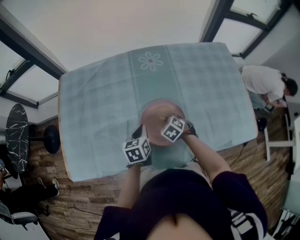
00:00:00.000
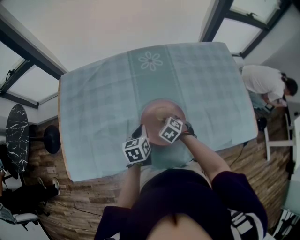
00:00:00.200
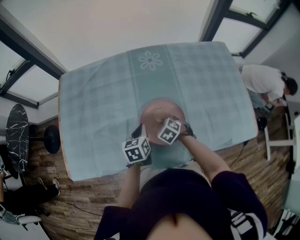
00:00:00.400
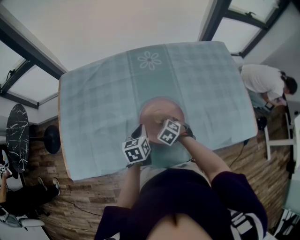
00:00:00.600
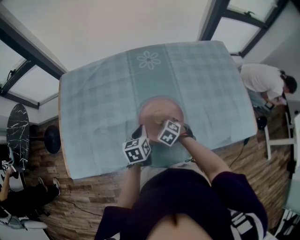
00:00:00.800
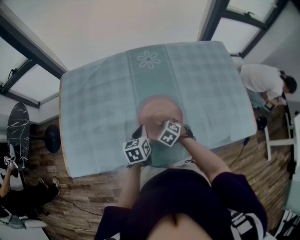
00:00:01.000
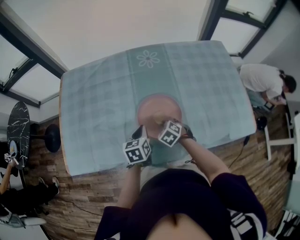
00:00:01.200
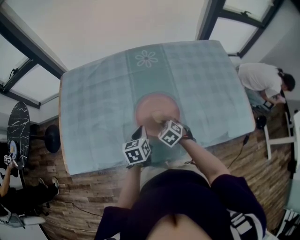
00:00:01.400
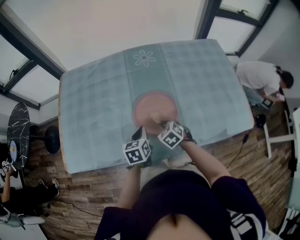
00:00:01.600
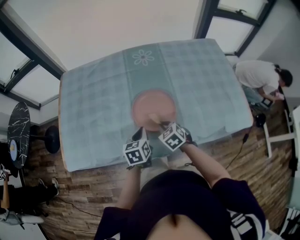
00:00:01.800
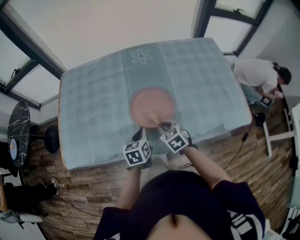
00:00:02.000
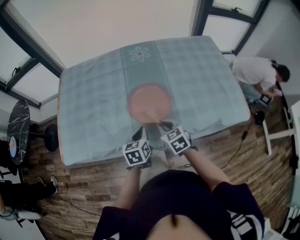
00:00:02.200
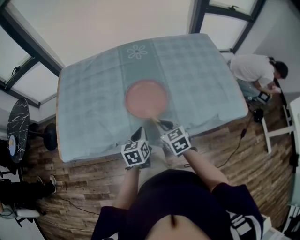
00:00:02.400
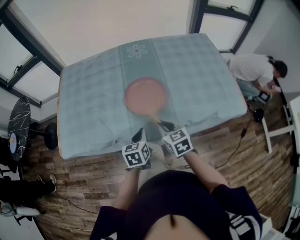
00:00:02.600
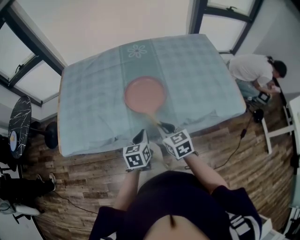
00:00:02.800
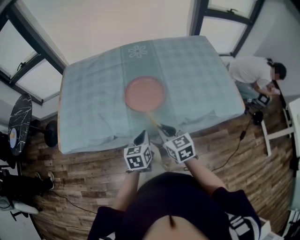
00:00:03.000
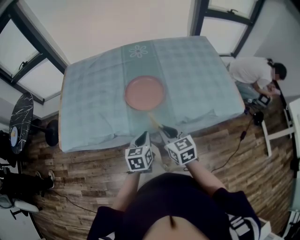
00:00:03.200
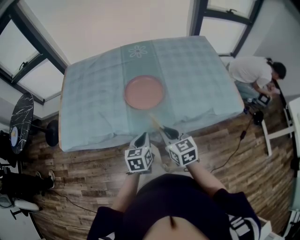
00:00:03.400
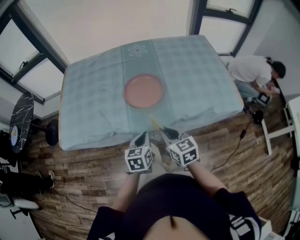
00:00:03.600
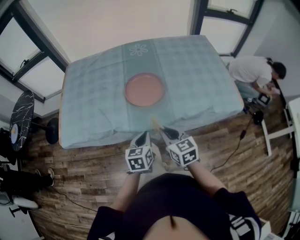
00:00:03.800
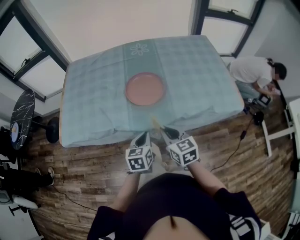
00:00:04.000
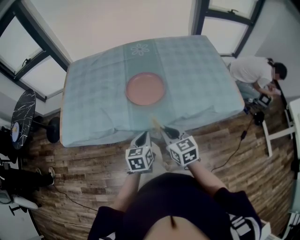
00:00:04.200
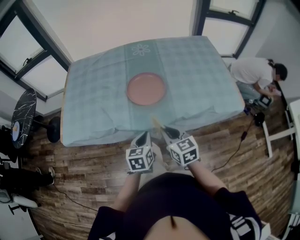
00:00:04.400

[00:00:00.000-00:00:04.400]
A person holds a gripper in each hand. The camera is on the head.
00:00:00.000 to 00:00:01.400: The grippers both shift backward by about 5 cm.
00:00:01.400 to 00:00:03.000: The right gripper is displaced backward and upward by roughly 25 cm, and tips its fingers upward by approximately 30 degrees. The left gripper travels backward by about 20 cm.
00:00:03.000 to 00:00:04.400: Both grippers travel together backward, some 5 cm.

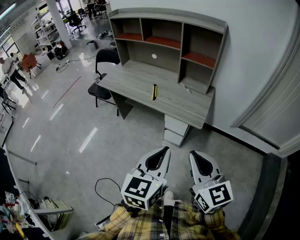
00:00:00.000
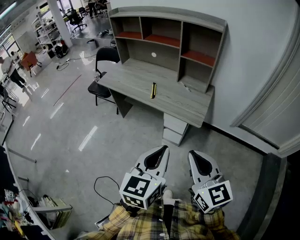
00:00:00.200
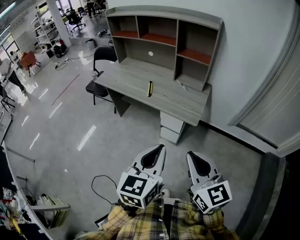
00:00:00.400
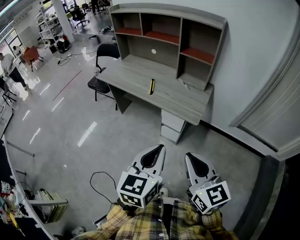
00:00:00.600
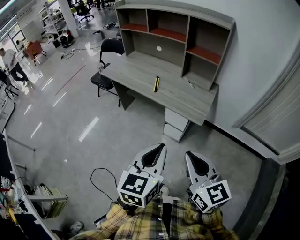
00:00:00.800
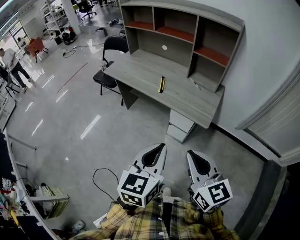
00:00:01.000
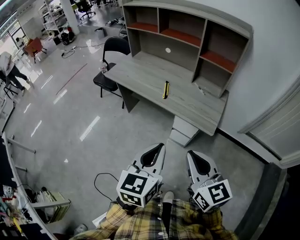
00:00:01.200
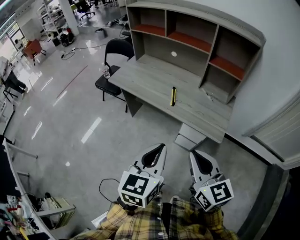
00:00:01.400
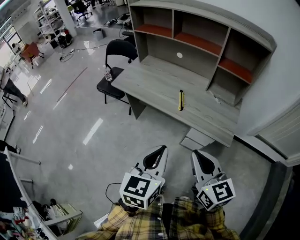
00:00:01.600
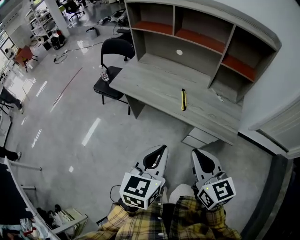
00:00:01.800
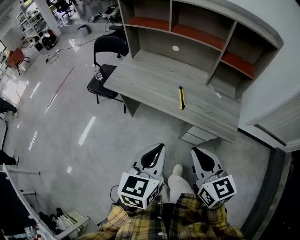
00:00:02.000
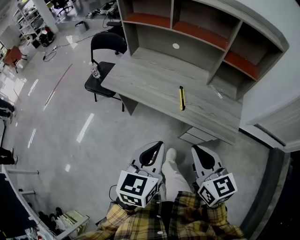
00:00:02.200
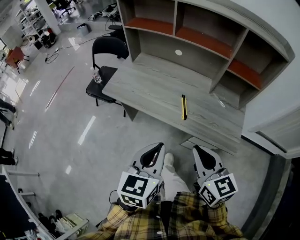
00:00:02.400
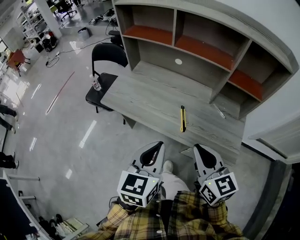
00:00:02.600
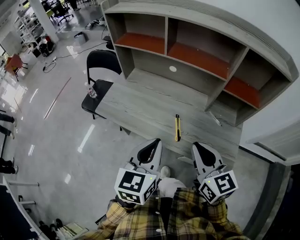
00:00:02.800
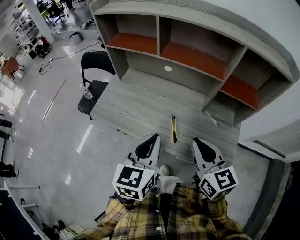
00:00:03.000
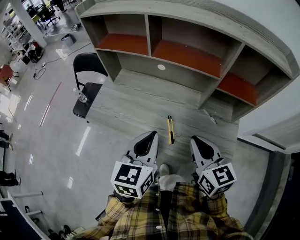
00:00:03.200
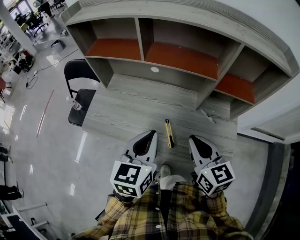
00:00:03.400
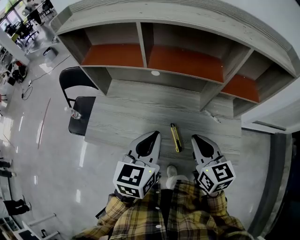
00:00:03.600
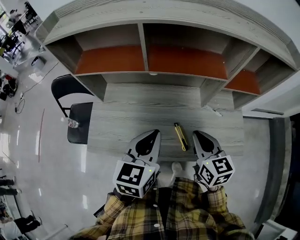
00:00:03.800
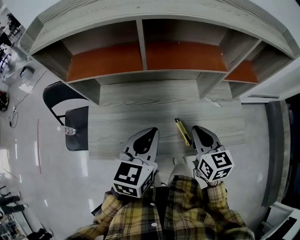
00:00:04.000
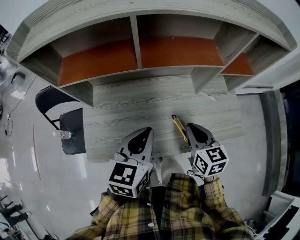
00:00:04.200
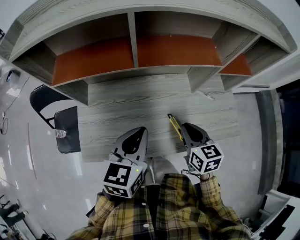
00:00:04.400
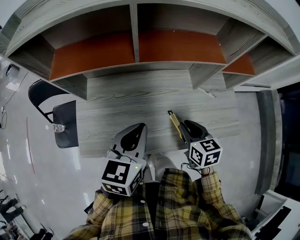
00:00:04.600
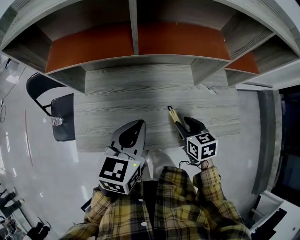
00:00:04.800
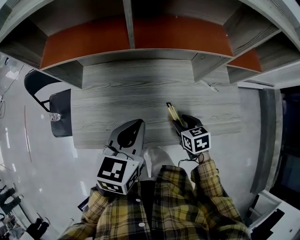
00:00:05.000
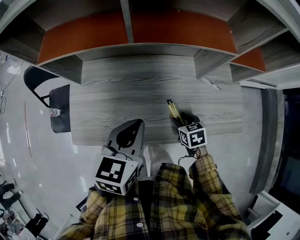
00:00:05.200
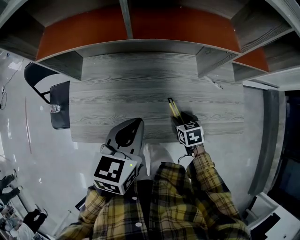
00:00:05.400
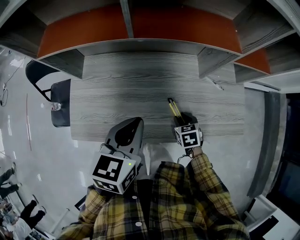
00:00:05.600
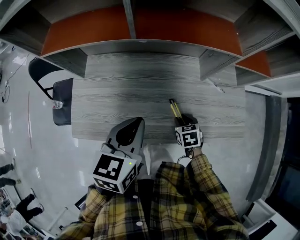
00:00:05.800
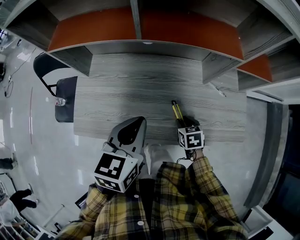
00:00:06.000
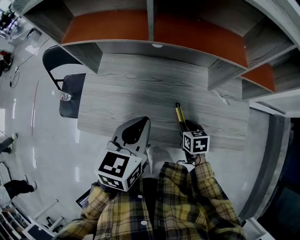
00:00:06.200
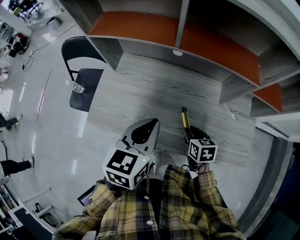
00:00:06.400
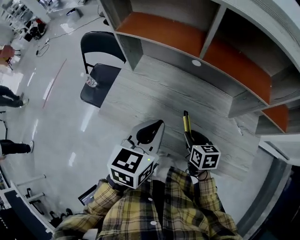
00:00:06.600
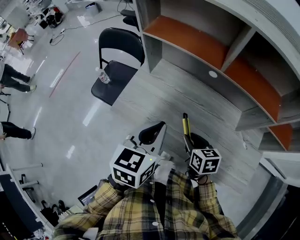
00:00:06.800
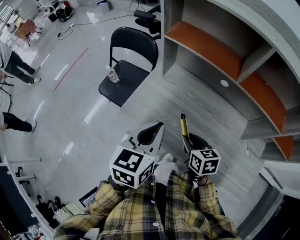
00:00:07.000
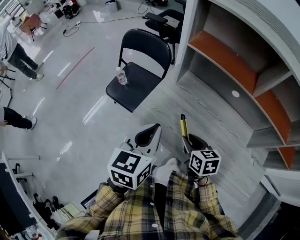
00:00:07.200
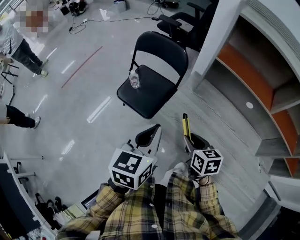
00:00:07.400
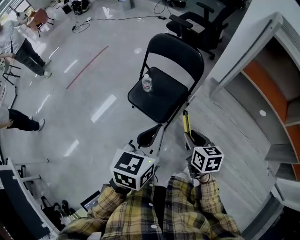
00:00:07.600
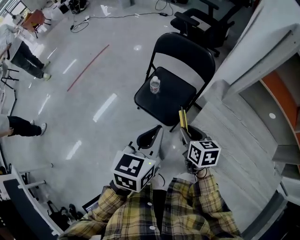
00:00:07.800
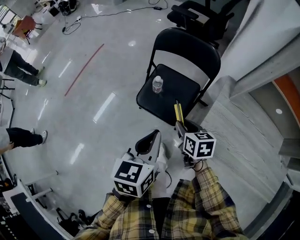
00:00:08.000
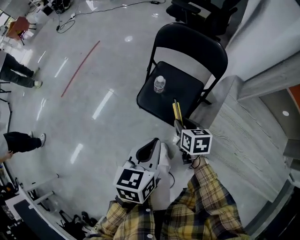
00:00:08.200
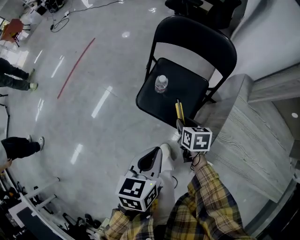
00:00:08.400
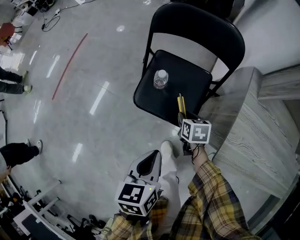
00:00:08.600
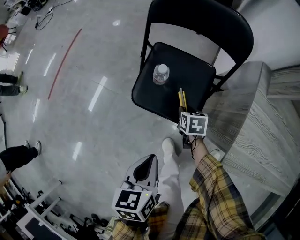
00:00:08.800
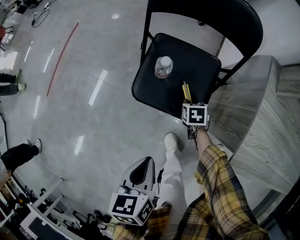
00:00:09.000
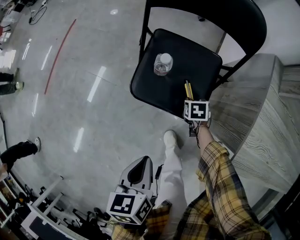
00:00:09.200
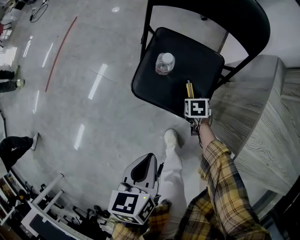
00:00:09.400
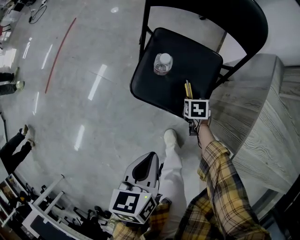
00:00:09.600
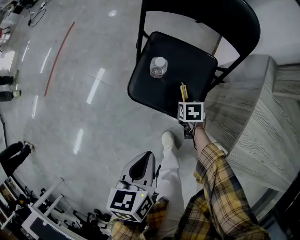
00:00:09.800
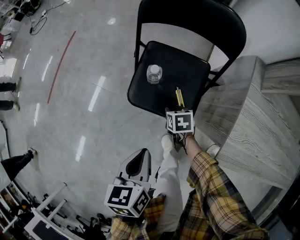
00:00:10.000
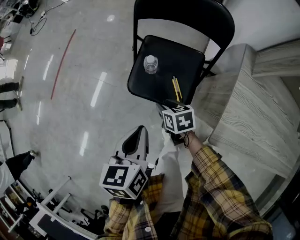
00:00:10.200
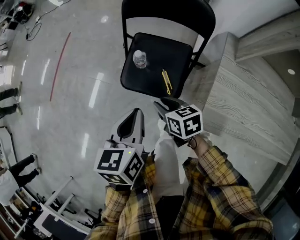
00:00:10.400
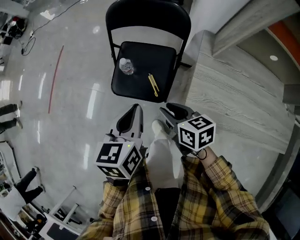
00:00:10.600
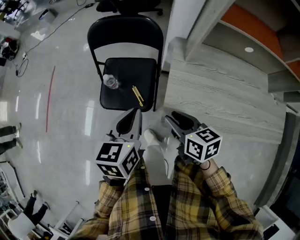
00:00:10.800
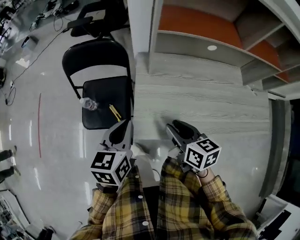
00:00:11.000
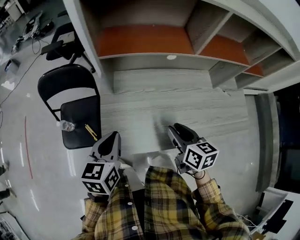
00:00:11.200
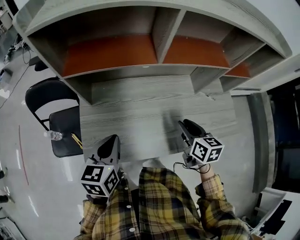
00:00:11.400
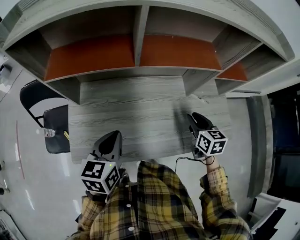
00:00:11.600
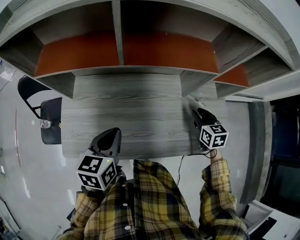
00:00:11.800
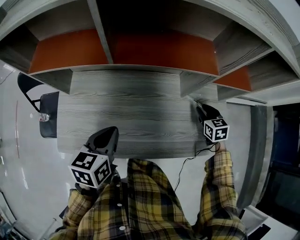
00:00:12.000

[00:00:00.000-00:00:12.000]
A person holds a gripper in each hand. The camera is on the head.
00:00:00.000 to 00:00:01.600: The right gripper heads forward and to the left, covering roughly 25 cm. Meanwhile the left gripper heads to the left and forward, covering roughly 25 cm.
00:00:01.600 to 00:00:03.000: The two grippers go roughly 30 cm forward.
00:00:03.000 to 00:00:04.400: The right gripper is displaced downward by some 15 cm, and rotates about 40 degrees; the left gripper moves roughly 20 cm, and rotates about 30 degrees.
00:00:04.400 to 00:00:06.000: The right gripper goes roughly 20 cm downward, turns by some 30 degrees, and opens its fingers.
00:00:06.000 to 00:00:07.600: The two grippers travel together, about 50 cm. The left gripper rotates roughly 30 degrees. The right gripper swivels some 40 degrees.
00:00:07.600 to 00:00:09.000: The right gripper moves downward, forward and to the left, some 50 cm, and turns by some 30 degrees. The left gripper heads downward and to the left, covering roughly 35 cm, and swivels some 30 degrees.
00:00:09.000 to 00:00:10.400: The left gripper travels upward by approximately 15 cm. Meanwhile the right gripper shifts about 25 cm upward, and turns by roughly 30 degrees.
00:00:10.400 to 00:00:12.000: The two grippers travel together, approximately 80 cm. The right gripper rotates some 40 degrees. Meanwhile the left gripper turns by roughly 30 degrees.

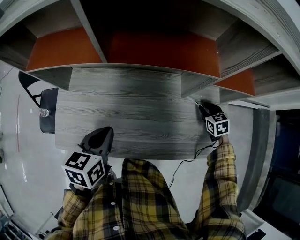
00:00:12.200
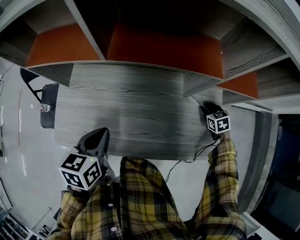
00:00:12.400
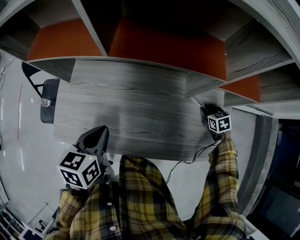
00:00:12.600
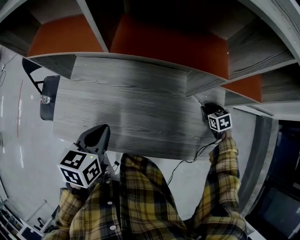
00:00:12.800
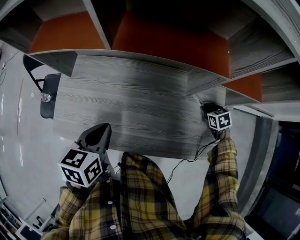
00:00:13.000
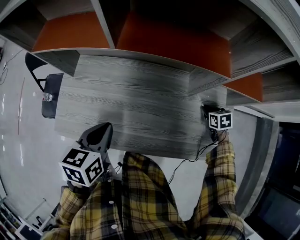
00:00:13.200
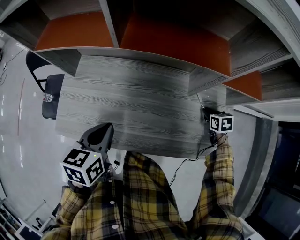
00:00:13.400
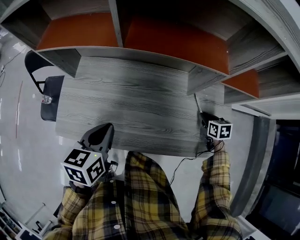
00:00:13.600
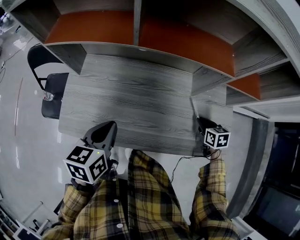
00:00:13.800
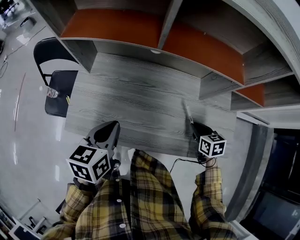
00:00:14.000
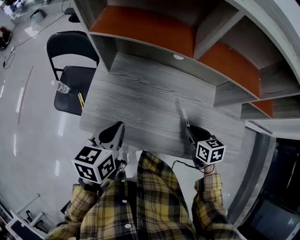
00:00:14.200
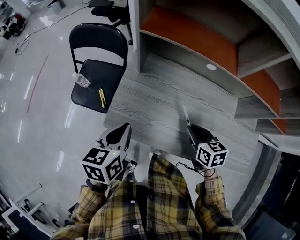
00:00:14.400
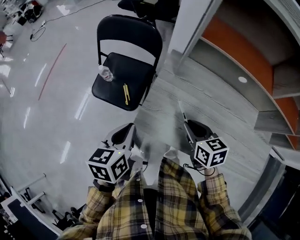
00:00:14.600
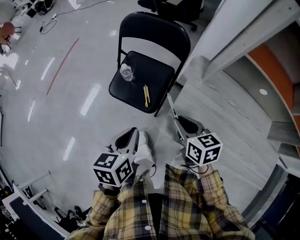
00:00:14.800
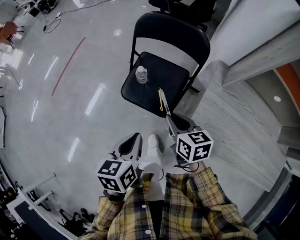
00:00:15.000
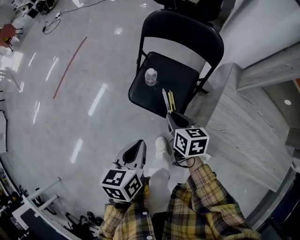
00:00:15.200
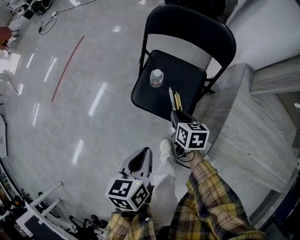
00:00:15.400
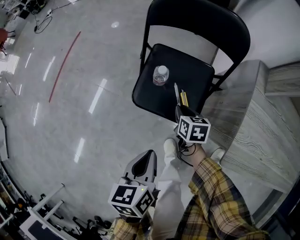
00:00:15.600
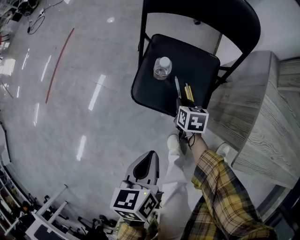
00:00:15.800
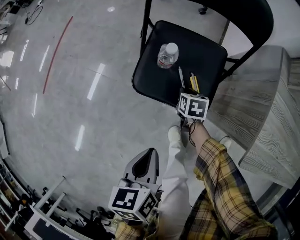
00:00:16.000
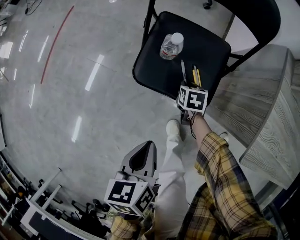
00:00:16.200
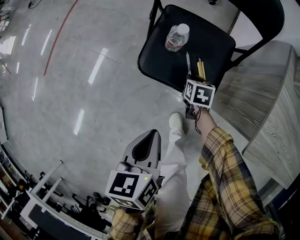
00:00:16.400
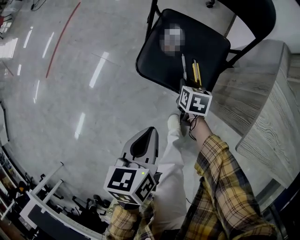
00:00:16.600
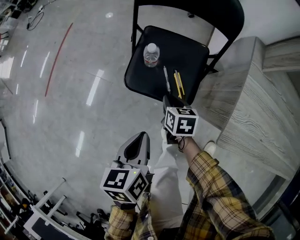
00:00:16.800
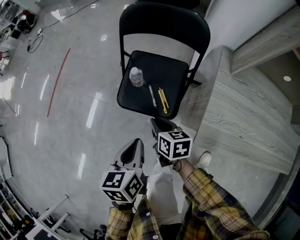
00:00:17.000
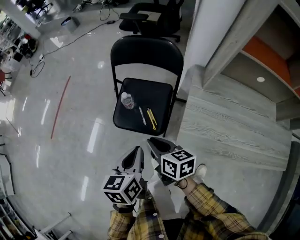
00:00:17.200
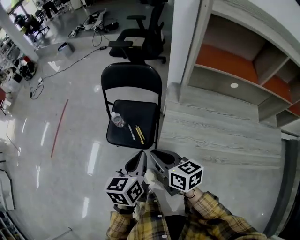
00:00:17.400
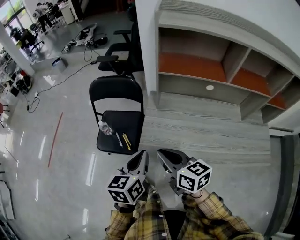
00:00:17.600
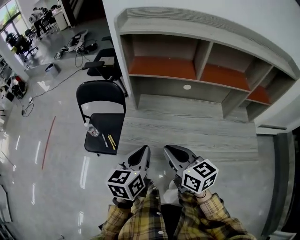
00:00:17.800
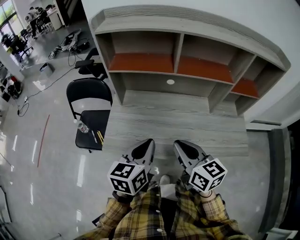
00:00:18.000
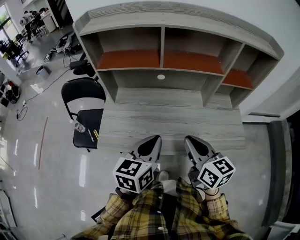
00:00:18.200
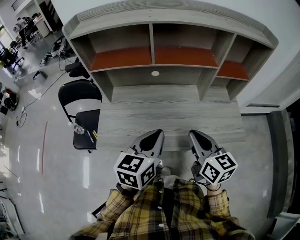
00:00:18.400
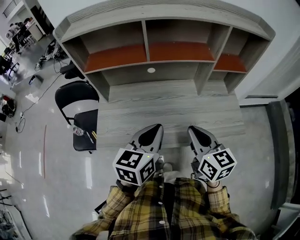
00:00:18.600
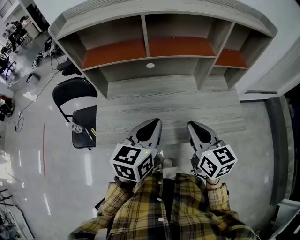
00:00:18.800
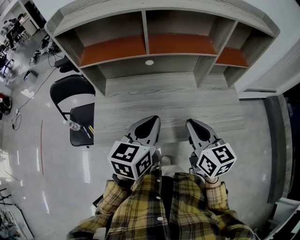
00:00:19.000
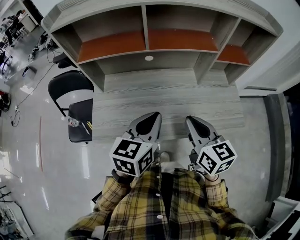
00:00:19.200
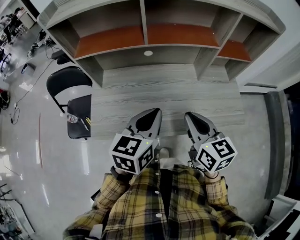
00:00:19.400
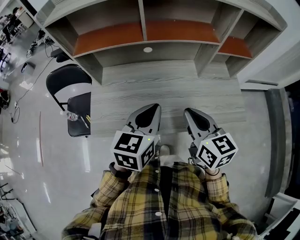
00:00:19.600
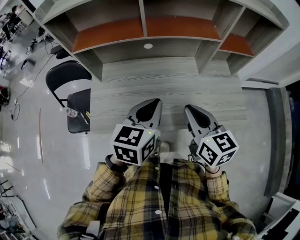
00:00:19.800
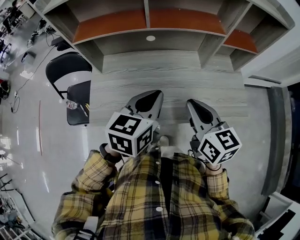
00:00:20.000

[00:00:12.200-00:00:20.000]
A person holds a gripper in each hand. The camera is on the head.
00:00:12.200 to 00:00:13.800: The right gripper travels backward and to the left by about 10 cm.
00:00:13.800 to 00:00:15.400: The two grippers travel together, roughly 80 cm. The left gripper turns by approximately 30 degrees.
00:00:15.400 to 00:00:16.800: Both grippers travel together downward, approximately 10 cm.
00:00:16.800 to 00:00:18.400: The pair of grippers is taken about 70 cm. The left gripper rotates about 50 degrees. The right gripper points its fingers about 40 degrees further upward.
00:00:18.400 to 00:00:20.000: The left gripper travels forward by approximately 5 cm.
